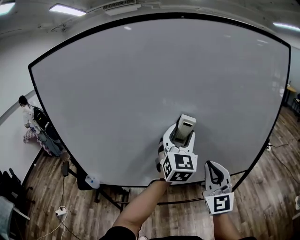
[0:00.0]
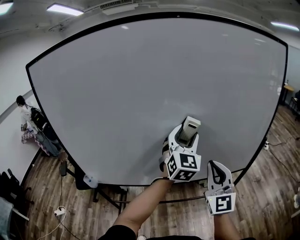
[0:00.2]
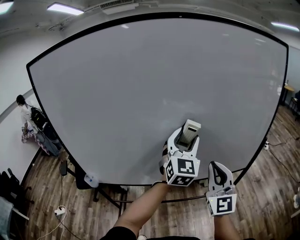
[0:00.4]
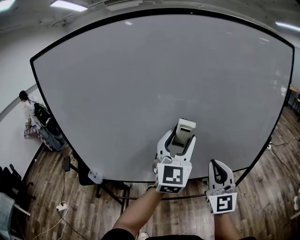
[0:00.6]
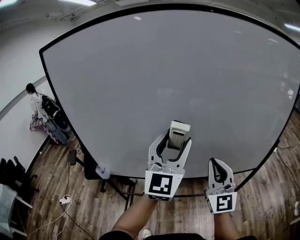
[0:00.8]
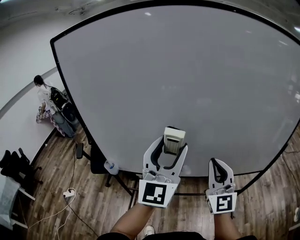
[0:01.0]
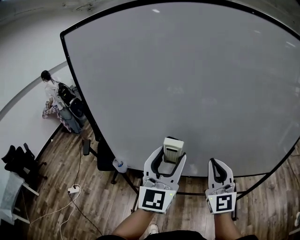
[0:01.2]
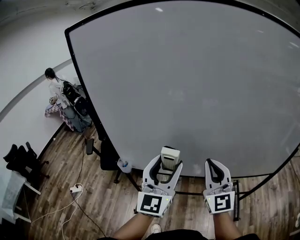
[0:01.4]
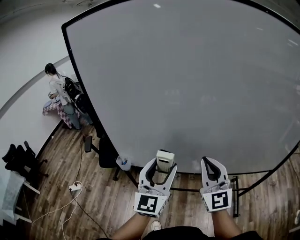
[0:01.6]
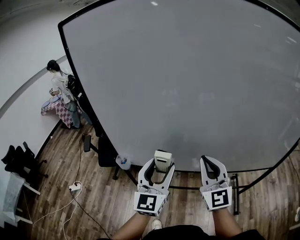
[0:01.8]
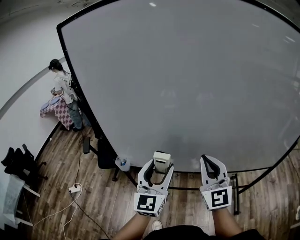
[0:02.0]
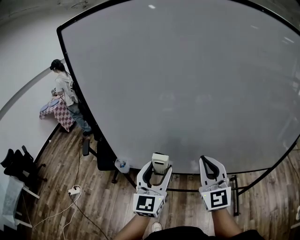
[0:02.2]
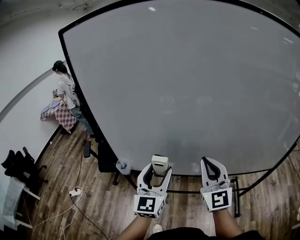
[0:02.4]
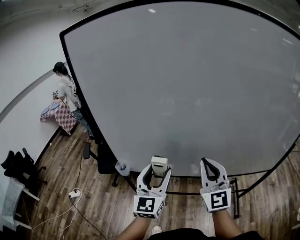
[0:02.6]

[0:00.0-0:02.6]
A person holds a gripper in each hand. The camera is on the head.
0:00.0 to 0:01.2: The left gripper shifts about 25 cm to the left and backward, and turns by about 20 degrees. Meanwhile the right gripper is displaced to the left by approximately 15 cm.
0:01.2 to 0:02.6: The left gripper travels downward and to the left by some 15 cm, while the right gripper goes roughly 5 cm to the left.

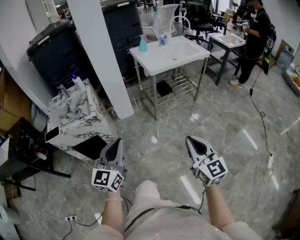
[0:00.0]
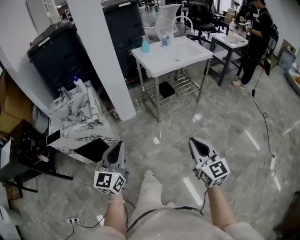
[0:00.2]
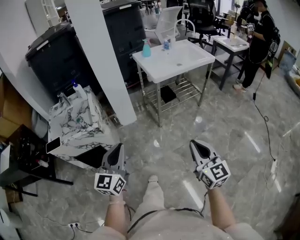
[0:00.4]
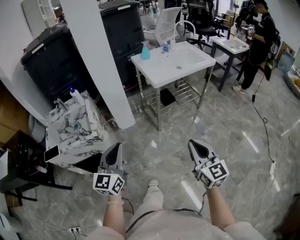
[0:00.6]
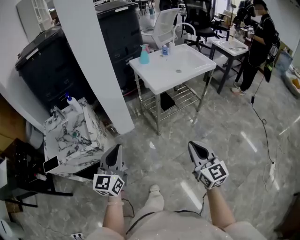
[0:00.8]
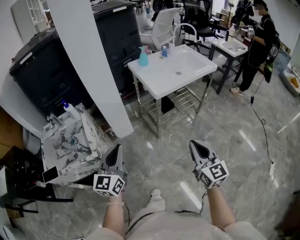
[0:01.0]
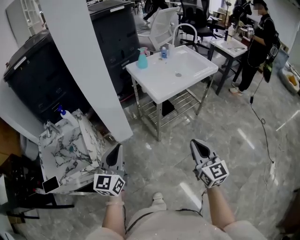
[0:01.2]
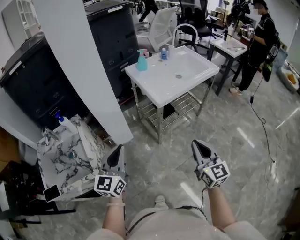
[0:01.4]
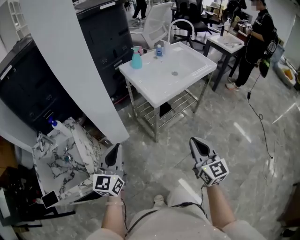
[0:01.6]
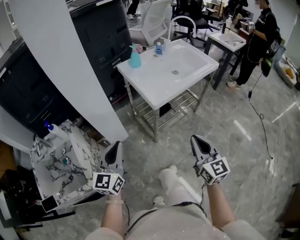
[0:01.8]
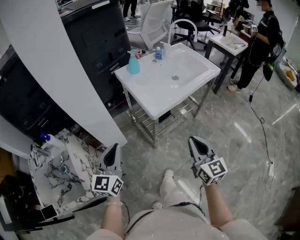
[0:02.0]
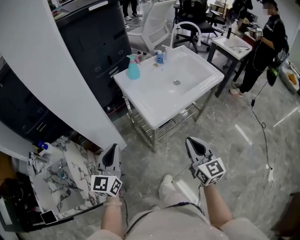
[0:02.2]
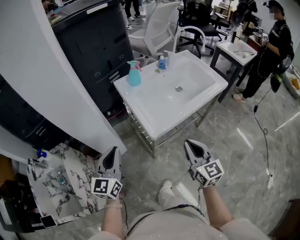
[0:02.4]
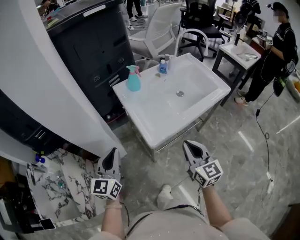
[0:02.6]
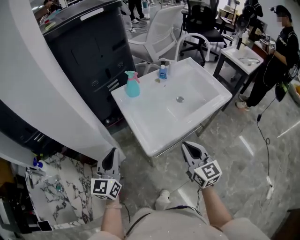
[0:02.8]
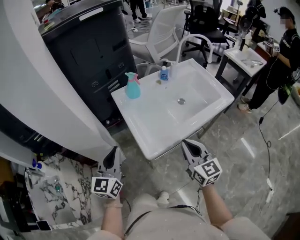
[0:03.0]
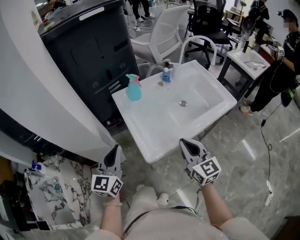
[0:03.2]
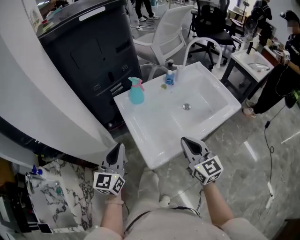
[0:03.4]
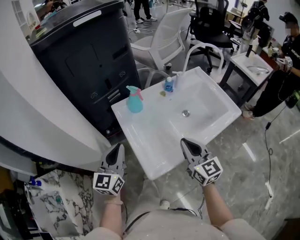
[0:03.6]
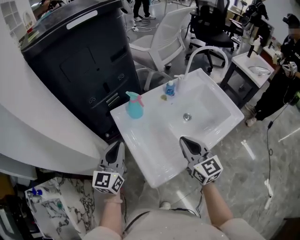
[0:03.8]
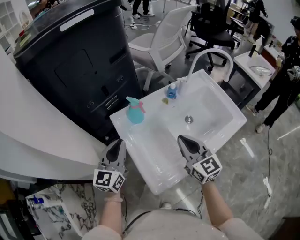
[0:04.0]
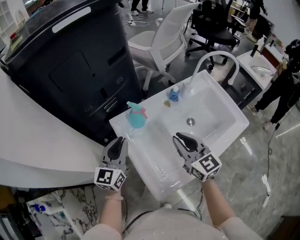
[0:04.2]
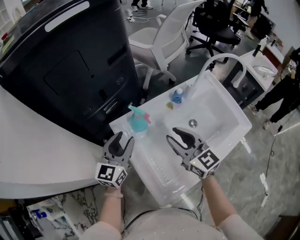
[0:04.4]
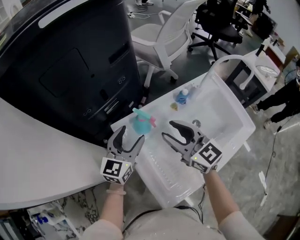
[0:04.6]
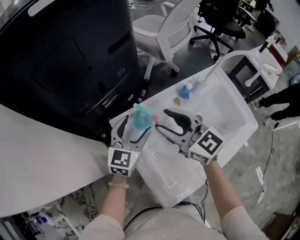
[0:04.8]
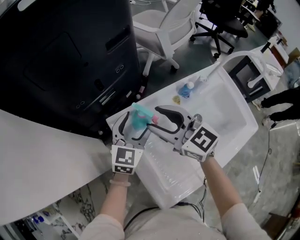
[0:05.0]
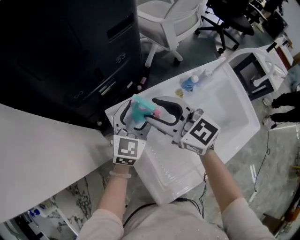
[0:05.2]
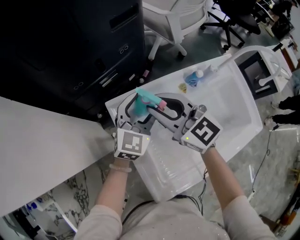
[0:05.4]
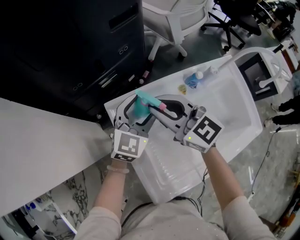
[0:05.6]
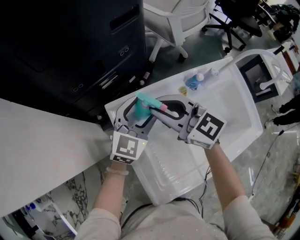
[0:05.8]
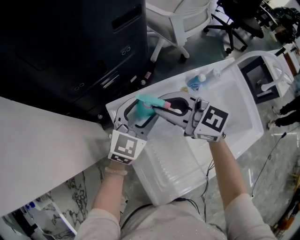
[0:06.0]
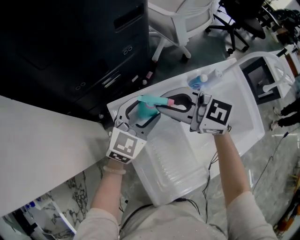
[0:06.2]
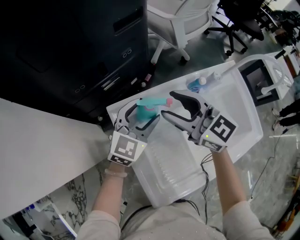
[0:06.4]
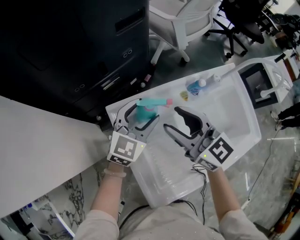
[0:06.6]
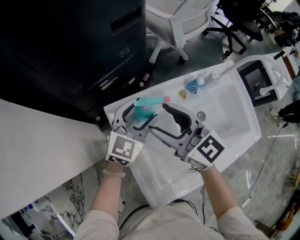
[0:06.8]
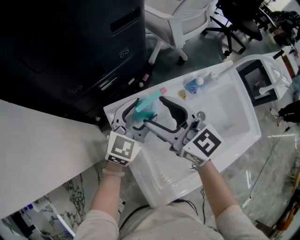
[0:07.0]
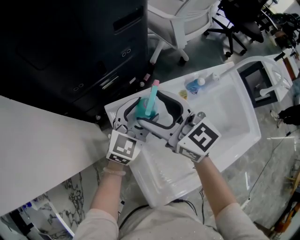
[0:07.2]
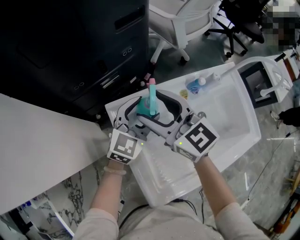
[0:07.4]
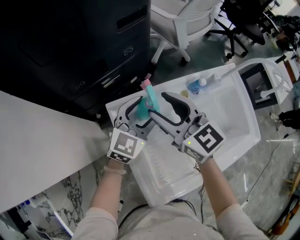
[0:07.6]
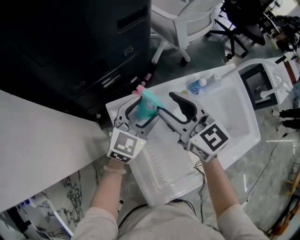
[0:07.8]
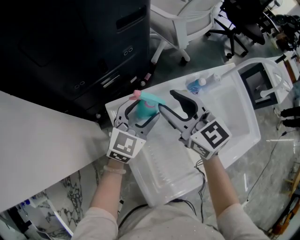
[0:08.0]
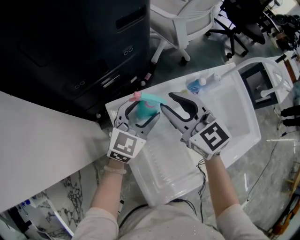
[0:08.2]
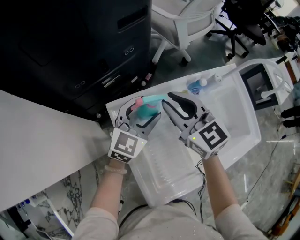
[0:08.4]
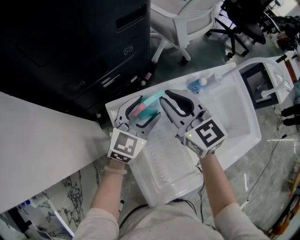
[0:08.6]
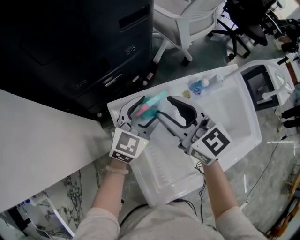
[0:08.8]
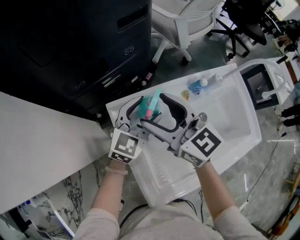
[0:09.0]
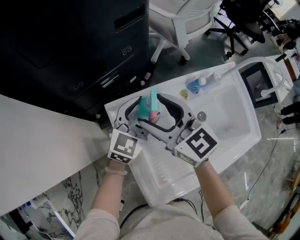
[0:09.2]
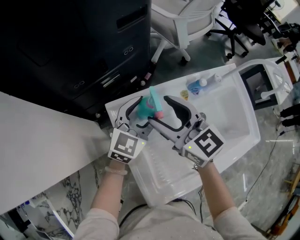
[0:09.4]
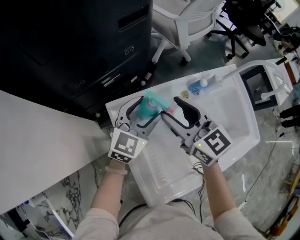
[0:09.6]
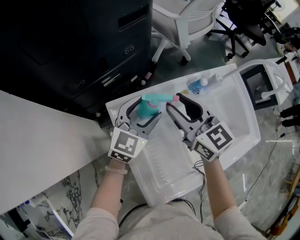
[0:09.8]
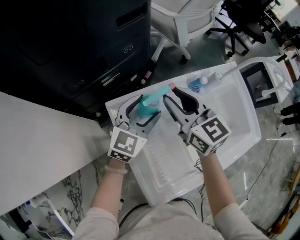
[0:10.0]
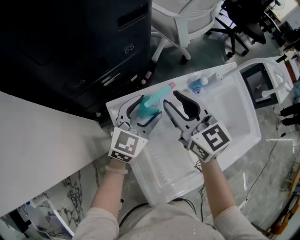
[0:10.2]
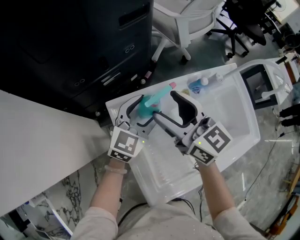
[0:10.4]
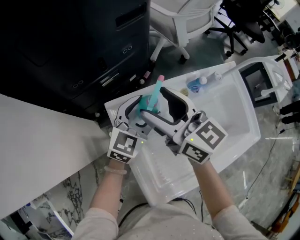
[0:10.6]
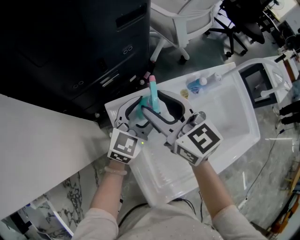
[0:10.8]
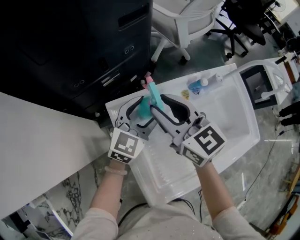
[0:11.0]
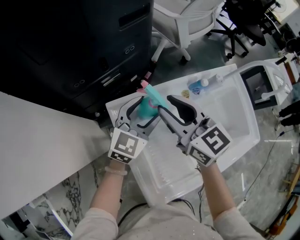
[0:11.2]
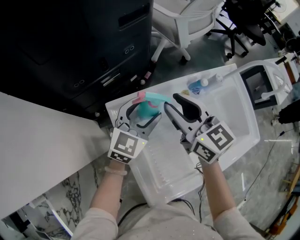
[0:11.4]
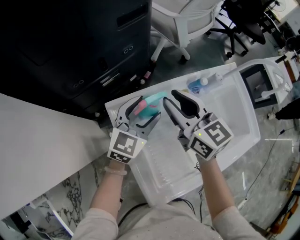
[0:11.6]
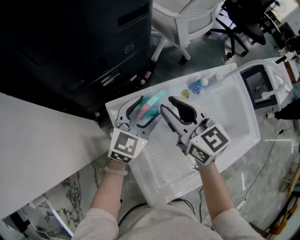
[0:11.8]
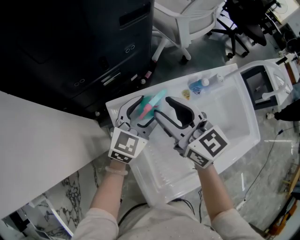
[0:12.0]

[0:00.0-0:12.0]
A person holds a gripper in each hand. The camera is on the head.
0:00.0 to 0:01.6: Both grippers travel together forward, roughly 35 cm.
0:01.6 to 0:03.0: Both grippers move forward, roughly 30 cm.
0:03.0 to 0:04.4: The two grippers go about 30 cm forward. The right gripper opens its fingers; the left gripper opens its fingers.
0:04.4 to 0:06.0: The right gripper heads forward and to the left, covering roughly 10 cm, and changes its angle by roughly 40 degrees. Meanwhile the left gripper travels to the right and forward by roughly 10 cm, and opens up.
0:06.0 to 0:07.6: The right gripper swivels about 20 degrees, and opens its fingers.
0:07.6 to 0:09.0: The right gripper closes, then reopens.
0:09.0 to 0:10.4: The right gripper closes, then opens again.
0:10.4 to 0:12.0: The right gripper closes up.

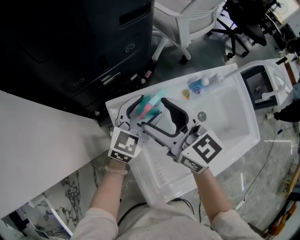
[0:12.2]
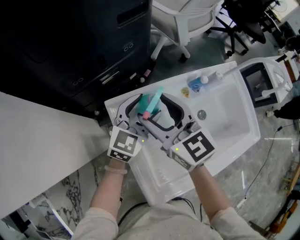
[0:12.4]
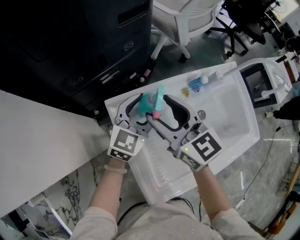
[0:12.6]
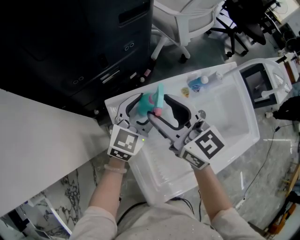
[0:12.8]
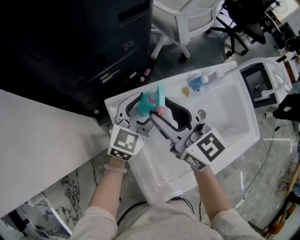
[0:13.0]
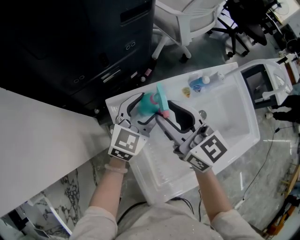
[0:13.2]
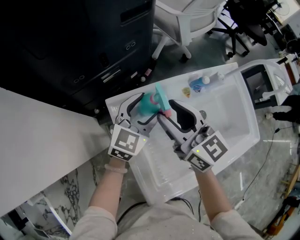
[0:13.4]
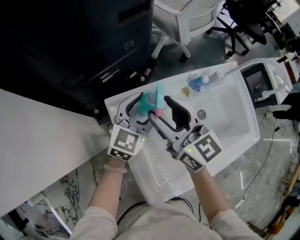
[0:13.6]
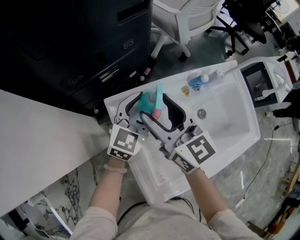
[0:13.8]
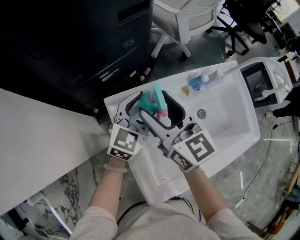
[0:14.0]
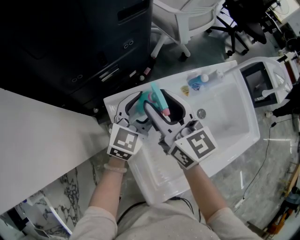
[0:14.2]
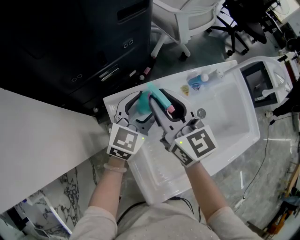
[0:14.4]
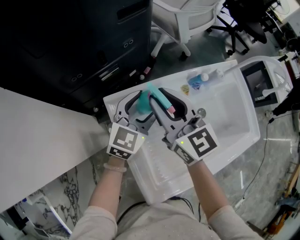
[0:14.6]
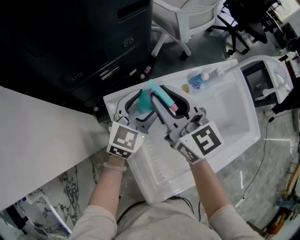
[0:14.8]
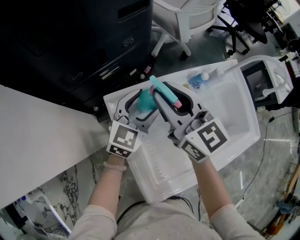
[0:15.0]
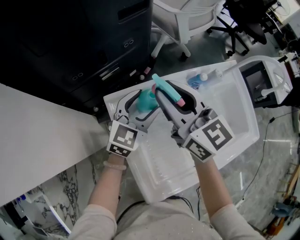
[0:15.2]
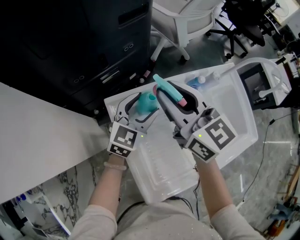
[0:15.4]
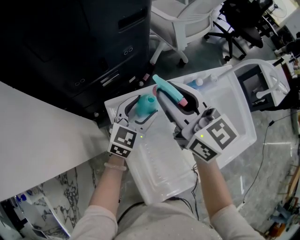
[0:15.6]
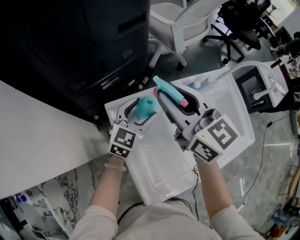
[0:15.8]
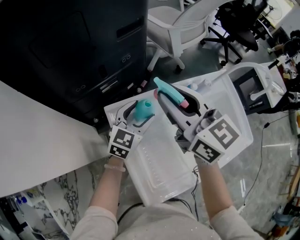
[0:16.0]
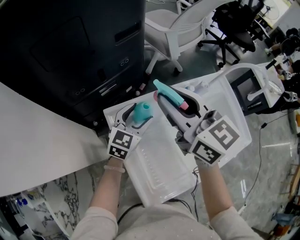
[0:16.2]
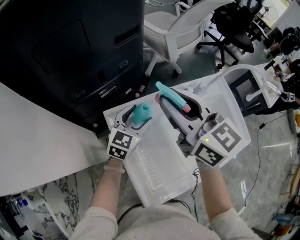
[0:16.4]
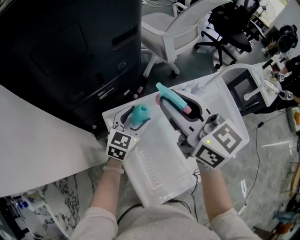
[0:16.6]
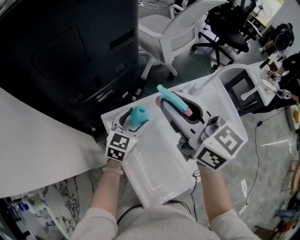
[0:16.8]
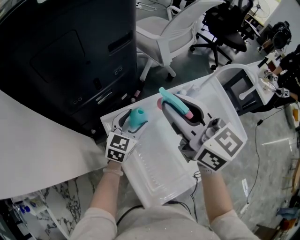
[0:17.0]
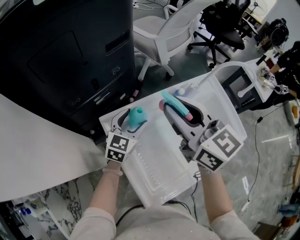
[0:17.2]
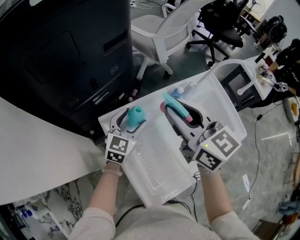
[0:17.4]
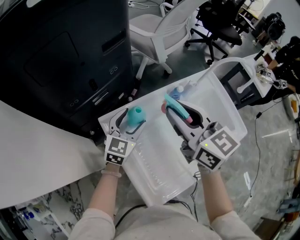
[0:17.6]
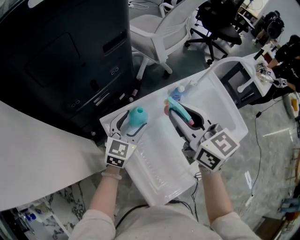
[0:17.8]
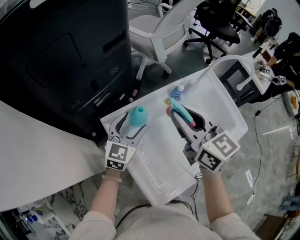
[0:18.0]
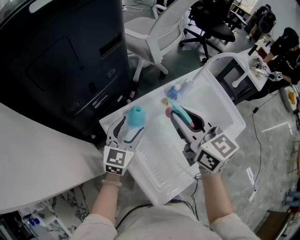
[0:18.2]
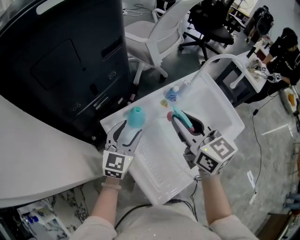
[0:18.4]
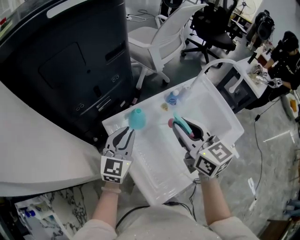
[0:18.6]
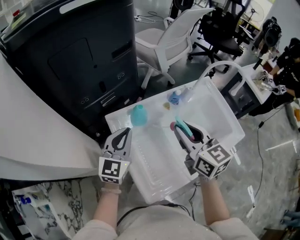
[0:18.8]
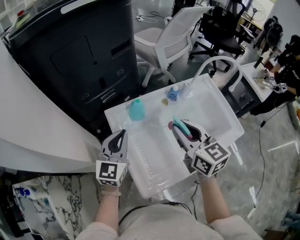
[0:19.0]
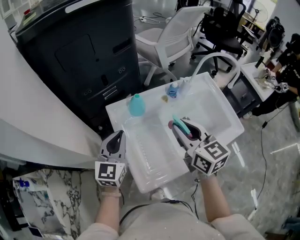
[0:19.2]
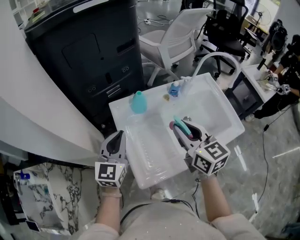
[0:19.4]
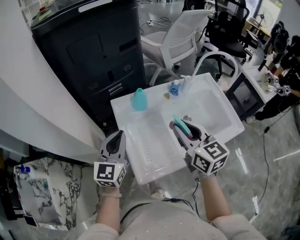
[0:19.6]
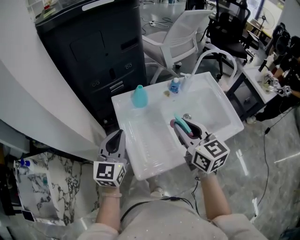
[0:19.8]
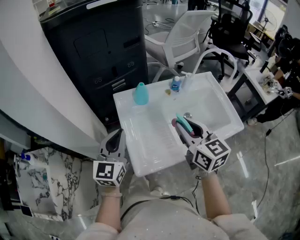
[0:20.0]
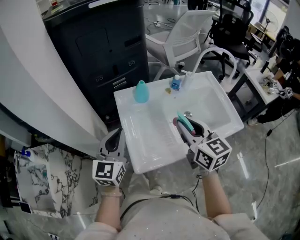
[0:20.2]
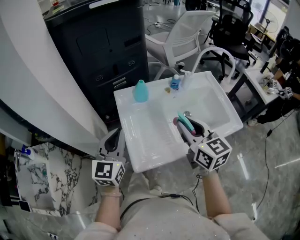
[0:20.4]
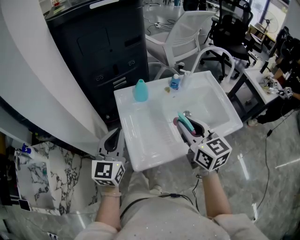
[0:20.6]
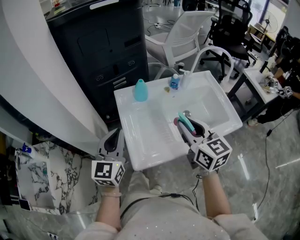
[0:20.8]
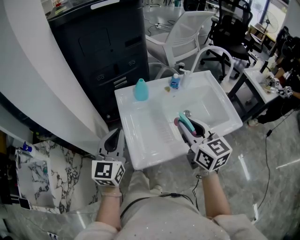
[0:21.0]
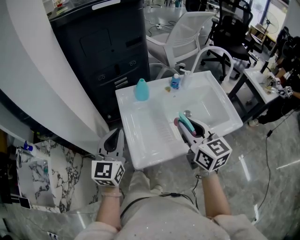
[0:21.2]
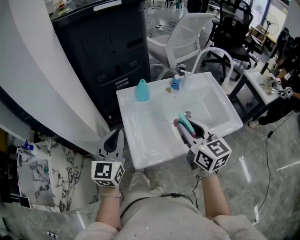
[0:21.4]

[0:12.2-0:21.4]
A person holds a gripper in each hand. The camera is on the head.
0:12.2 to 0:13.8: The grippers move only a little.
0:13.8 to 0:15.2: The right gripper closes up.
0:15.2 to 0:16.8: The right gripper moves upward, some 10 cm.
0:16.8 to 0:18.4: The right gripper is displaced to the right and downward by about 10 cm. The left gripper goes about 5 cm backward.
0:18.4 to 0:19.8: Both grippers move backward, roughly 15 cm. The left gripper swivels about 20 degrees, and closes its fingers.
0:19.8 to 0:21.4: Both grippers travel together backward, about 5 cm.
